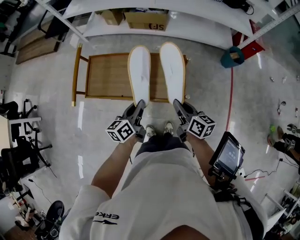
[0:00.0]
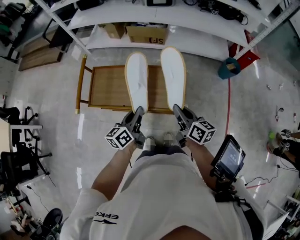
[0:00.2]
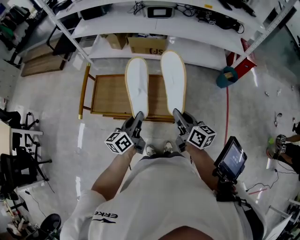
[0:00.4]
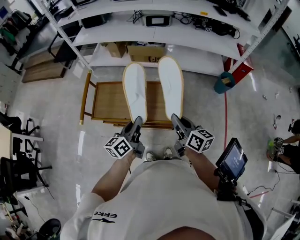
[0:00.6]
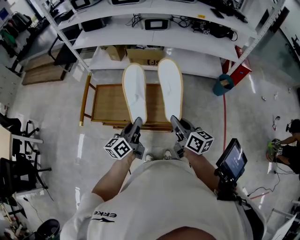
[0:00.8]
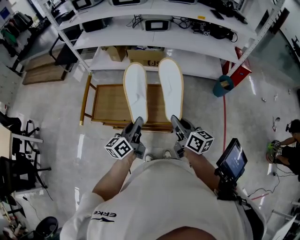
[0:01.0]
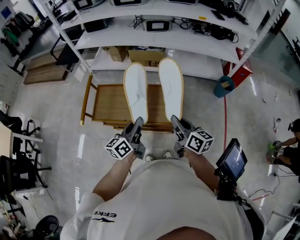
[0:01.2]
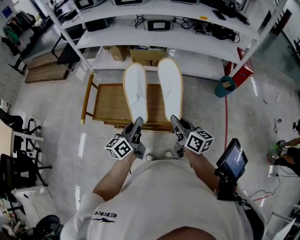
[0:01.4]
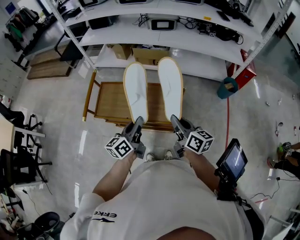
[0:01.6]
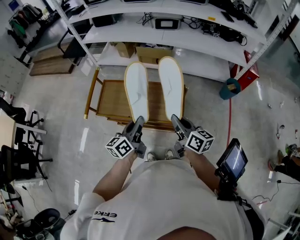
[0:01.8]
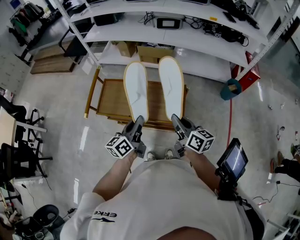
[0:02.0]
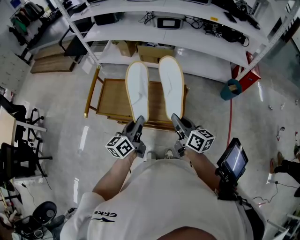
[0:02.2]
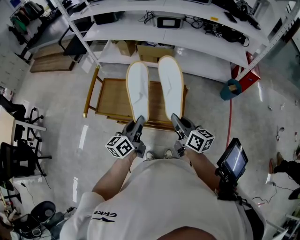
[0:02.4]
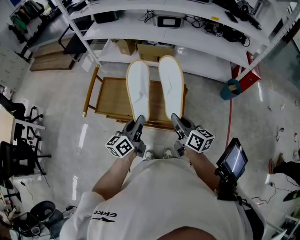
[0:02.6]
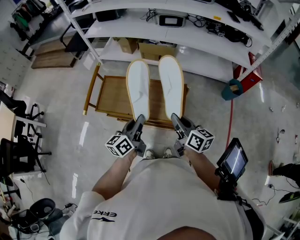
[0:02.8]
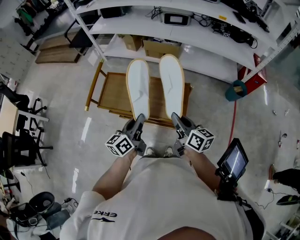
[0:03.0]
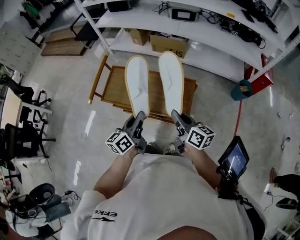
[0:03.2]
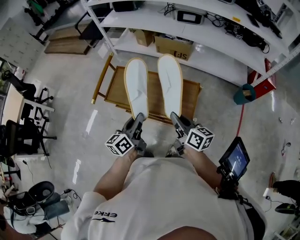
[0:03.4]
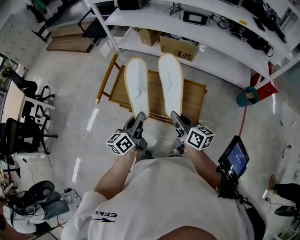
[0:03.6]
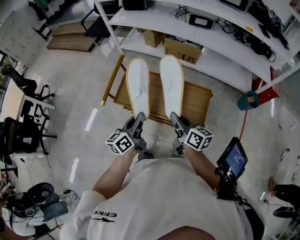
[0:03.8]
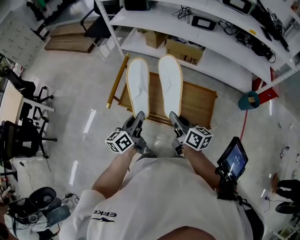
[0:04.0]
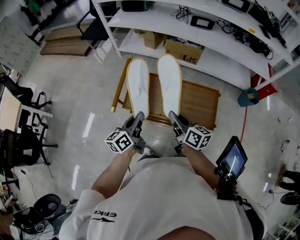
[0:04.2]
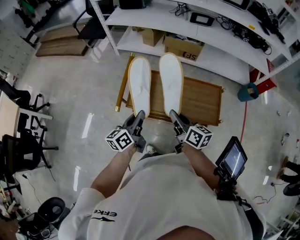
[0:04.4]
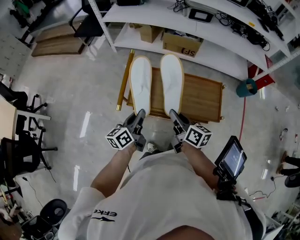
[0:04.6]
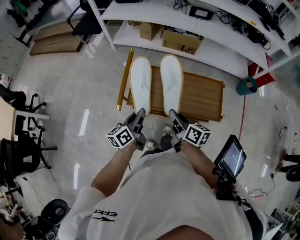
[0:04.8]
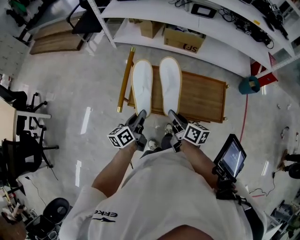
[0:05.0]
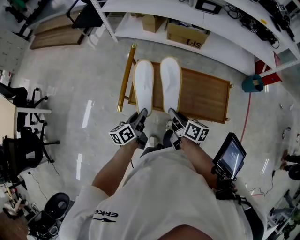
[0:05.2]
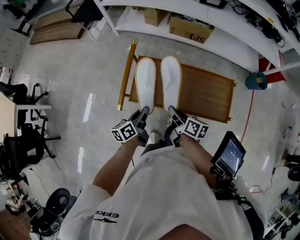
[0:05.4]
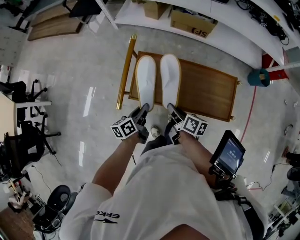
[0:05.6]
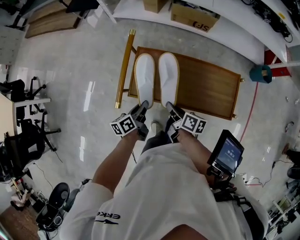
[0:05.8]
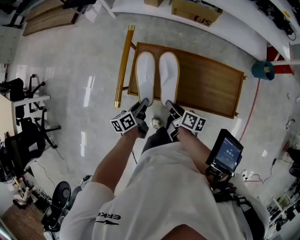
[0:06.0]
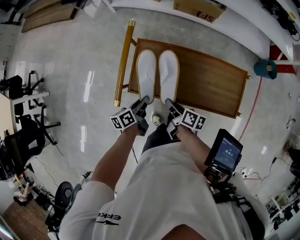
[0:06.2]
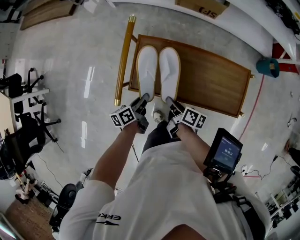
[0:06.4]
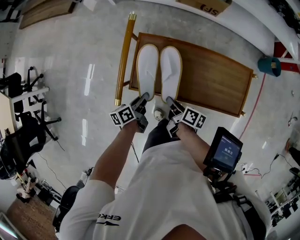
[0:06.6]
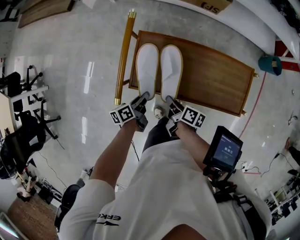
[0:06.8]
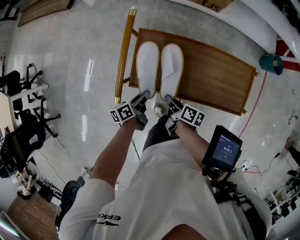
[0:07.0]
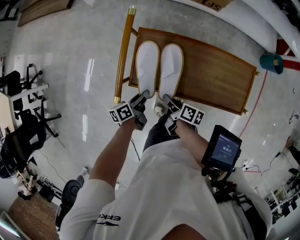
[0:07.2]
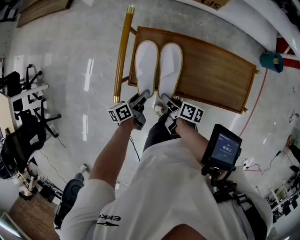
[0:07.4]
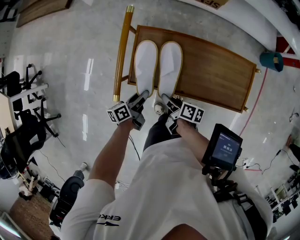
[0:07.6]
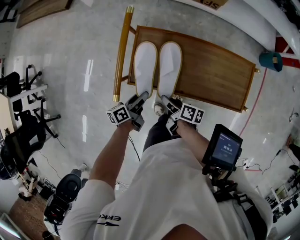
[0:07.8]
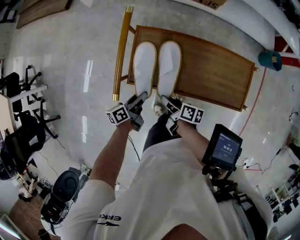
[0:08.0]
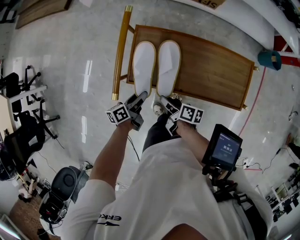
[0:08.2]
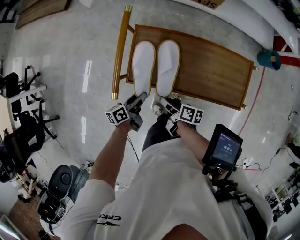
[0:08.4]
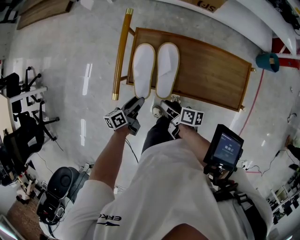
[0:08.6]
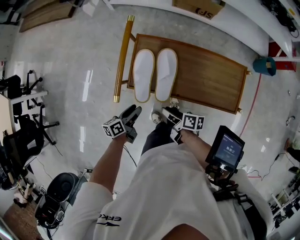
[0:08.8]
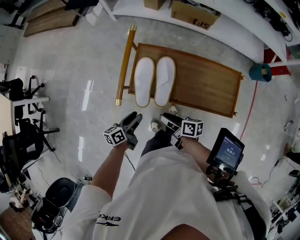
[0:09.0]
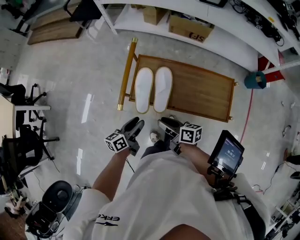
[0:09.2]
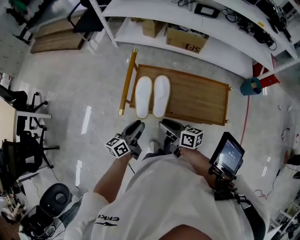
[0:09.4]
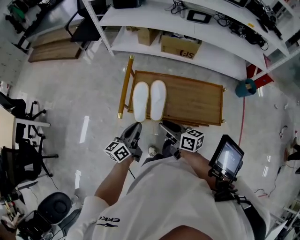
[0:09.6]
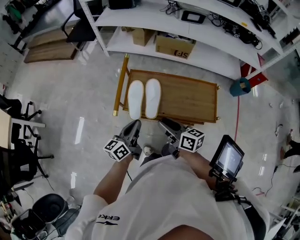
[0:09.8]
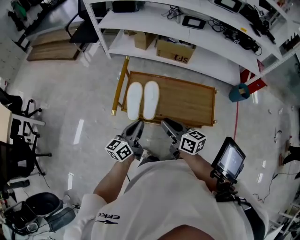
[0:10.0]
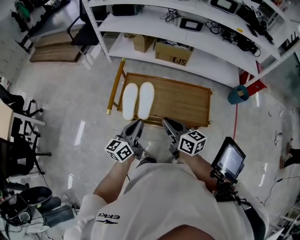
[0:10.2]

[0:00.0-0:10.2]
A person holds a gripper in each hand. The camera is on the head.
0:00.0 to 0:01.4: The two grippers go about 15 cm upward.
0:01.4 to 0:03.0: The grippers move only a little.
0:03.0 to 0:04.4: The grippers both shift to the left by some 25 cm.
0:04.4 to 0:05.8: The grippers both shift downward by some 15 cm. The right gripper swivels some 30 degrees. Meanwhile the left gripper turns by some 20 degrees.
0:05.8 to 0:07.2: The two grippers go some 10 cm downward.
0:07.2 to 0:08.8: The grippers both shift backward by some 5 cm. The right gripper opens up. The left gripper opens.
0:08.8 to 0:10.2: The right gripper is displaced upward by approximately 25 cm, rotates around the line of its fingers by about 40 degrees, counterclockwise from behind, and closes up. The left gripper travels upward and to the right by some 30 cm, rotates approximately 40 degrees, and closes up.

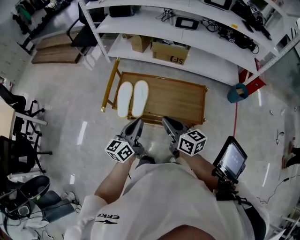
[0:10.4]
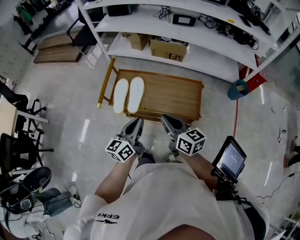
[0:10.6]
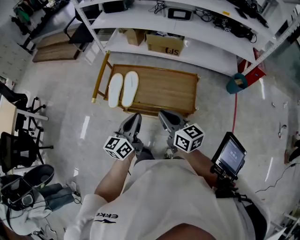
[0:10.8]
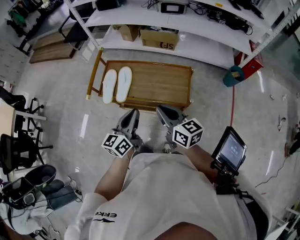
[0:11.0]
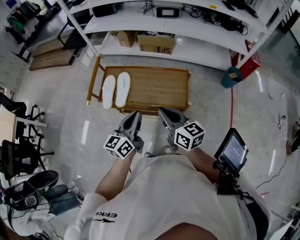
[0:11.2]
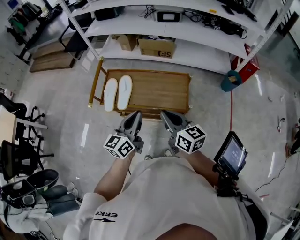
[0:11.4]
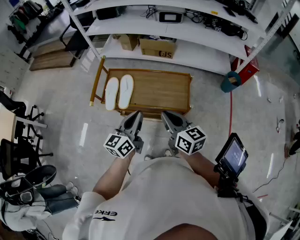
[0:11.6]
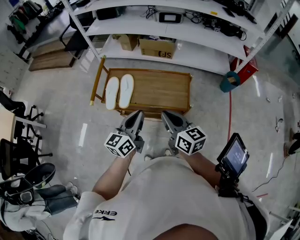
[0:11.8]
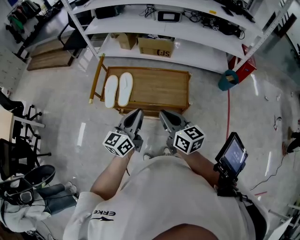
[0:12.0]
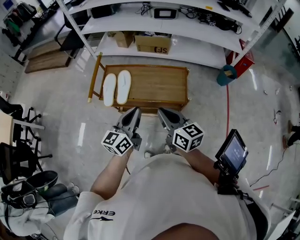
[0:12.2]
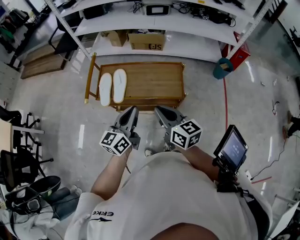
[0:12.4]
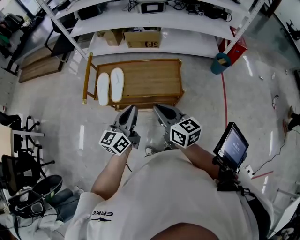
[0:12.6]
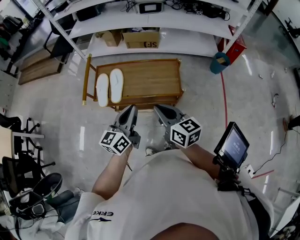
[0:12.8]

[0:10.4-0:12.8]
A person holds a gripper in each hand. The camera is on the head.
0:10.4 to 0:11.6: Both grippers travel together to the right and backward, approximately 10 cm.
0:11.6 to 0:12.8: The grippers make only small movements.

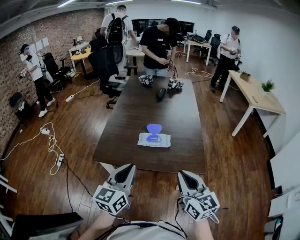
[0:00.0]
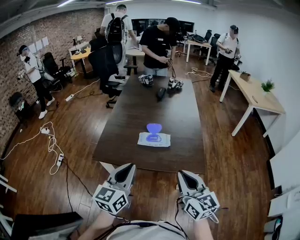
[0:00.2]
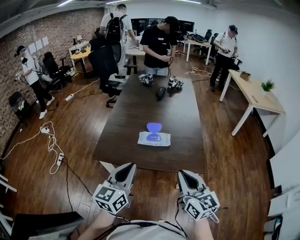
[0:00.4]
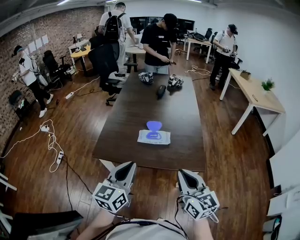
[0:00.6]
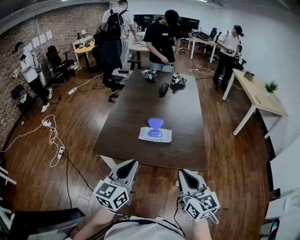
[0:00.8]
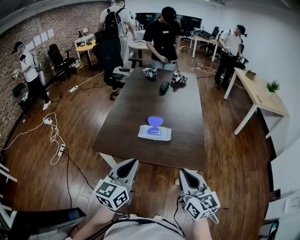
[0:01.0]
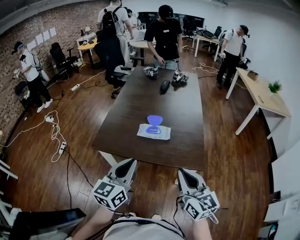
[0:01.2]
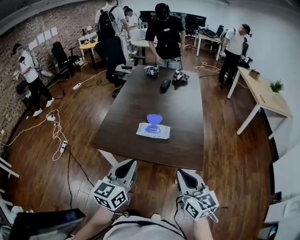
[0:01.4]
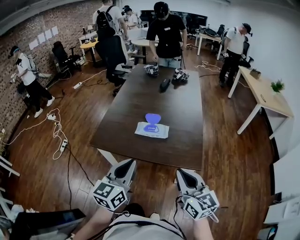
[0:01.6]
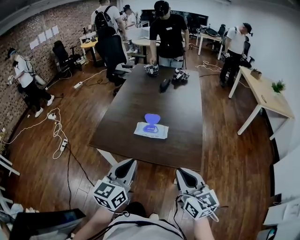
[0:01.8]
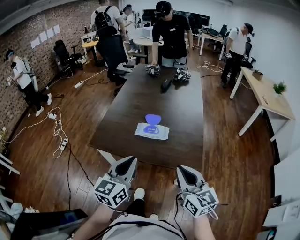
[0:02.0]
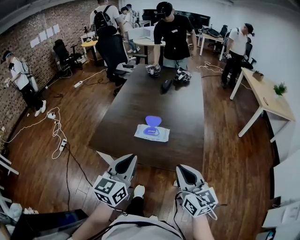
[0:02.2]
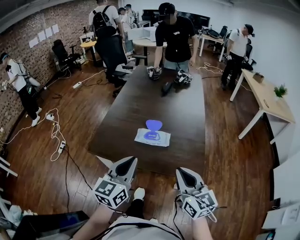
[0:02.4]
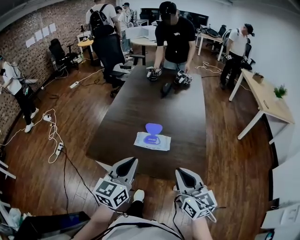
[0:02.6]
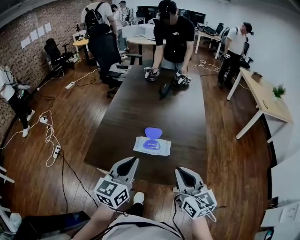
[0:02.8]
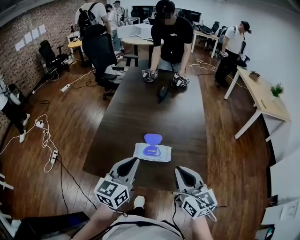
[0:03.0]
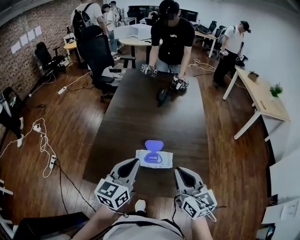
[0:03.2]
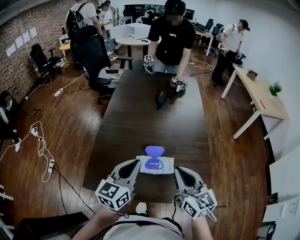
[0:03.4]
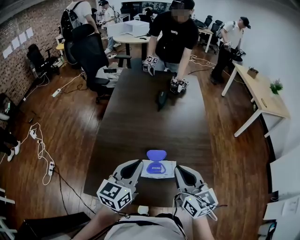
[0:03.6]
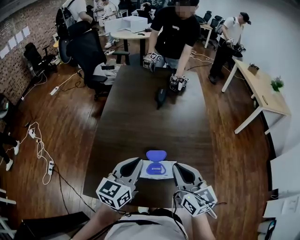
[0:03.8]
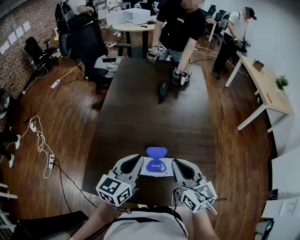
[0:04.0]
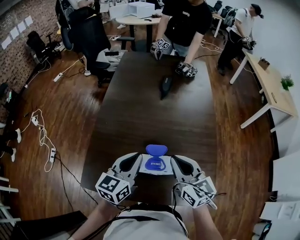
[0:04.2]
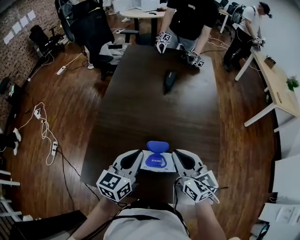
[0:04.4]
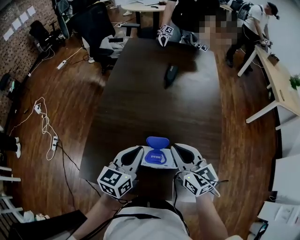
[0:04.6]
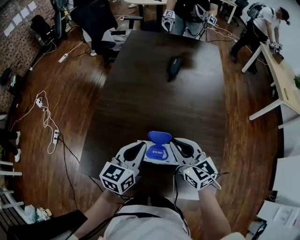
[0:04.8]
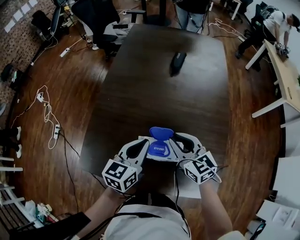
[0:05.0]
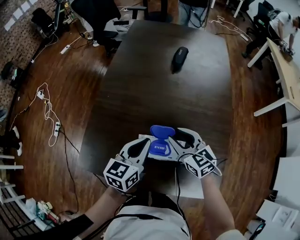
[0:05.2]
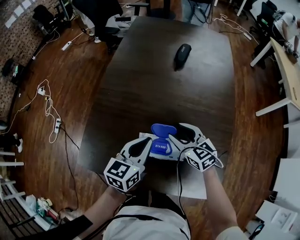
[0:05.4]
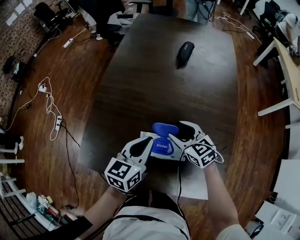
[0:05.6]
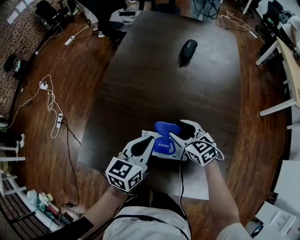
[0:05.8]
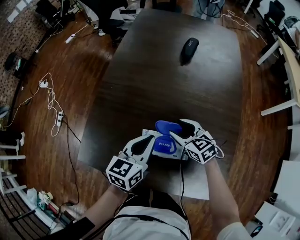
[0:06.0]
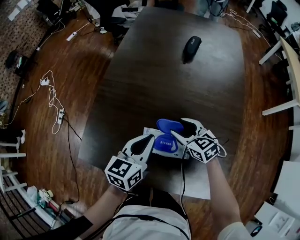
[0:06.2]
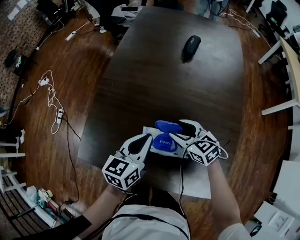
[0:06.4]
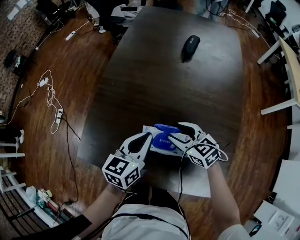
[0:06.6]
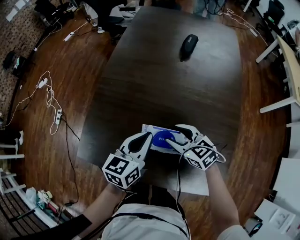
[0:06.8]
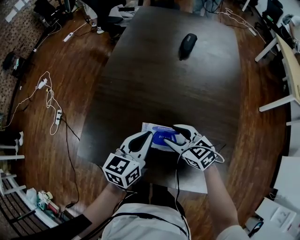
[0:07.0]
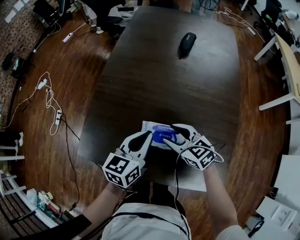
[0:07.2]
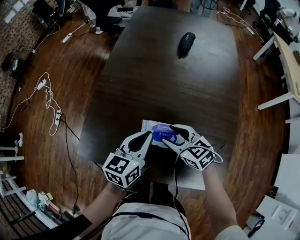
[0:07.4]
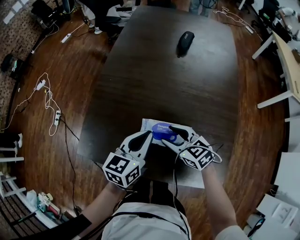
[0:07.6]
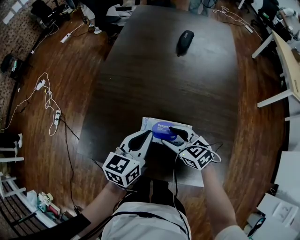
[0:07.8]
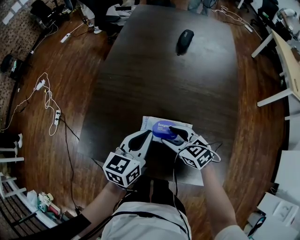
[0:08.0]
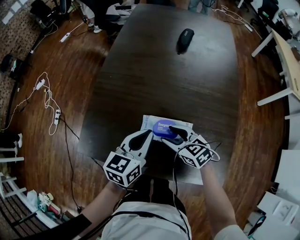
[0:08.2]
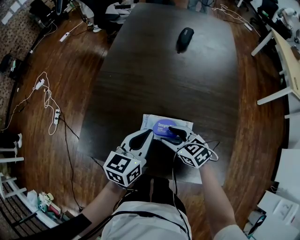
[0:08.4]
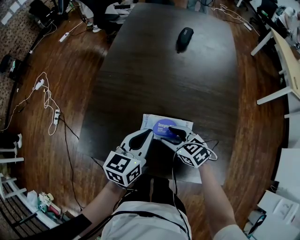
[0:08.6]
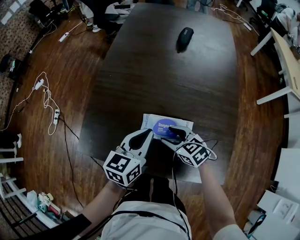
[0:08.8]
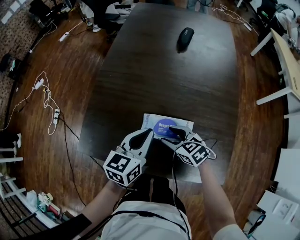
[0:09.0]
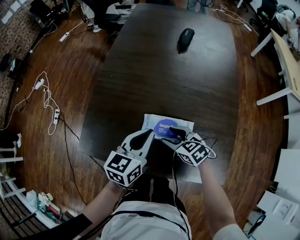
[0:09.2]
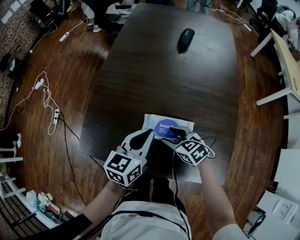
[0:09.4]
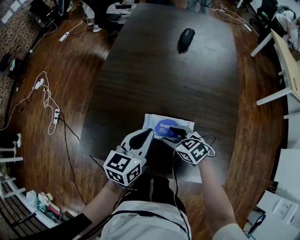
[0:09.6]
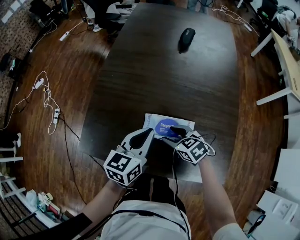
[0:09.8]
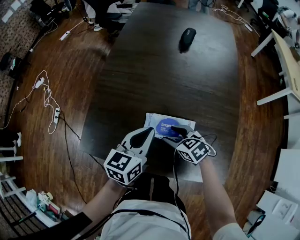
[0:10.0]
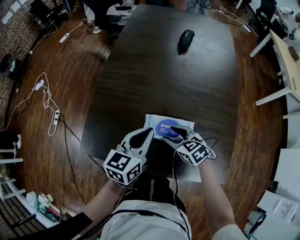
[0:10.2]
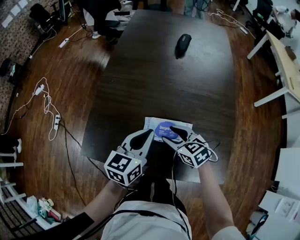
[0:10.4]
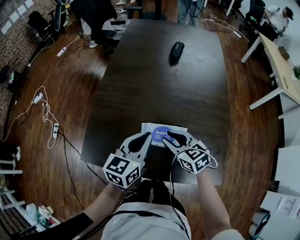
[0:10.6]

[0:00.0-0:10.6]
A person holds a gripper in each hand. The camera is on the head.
0:00.0 to 0:01.6: Both grippers move to the right, approximately 5 cm.
0:01.6 to 0:03.0: The two grippers go some 20 cm forward.
0:03.0 to 0:04.6: The right gripper moves forward, approximately 25 cm. Meanwhile the left gripper moves forward and downward, some 20 cm.
0:04.6 to 0:06.0: The left gripper shifts approximately 5 cm downward, while the right gripper heads downward, covering about 15 cm, turns by about 30 degrees, and opens its fingers.
0:06.0 to 0:07.6: The right gripper moves backward and to the left, roughly 10 cm.
0:07.6 to 0:09.0: The right gripper moves approximately 5 cm.
0:09.0 to 0:10.6: The right gripper moves upward, roughly 10 cm, and closes its fingers.
